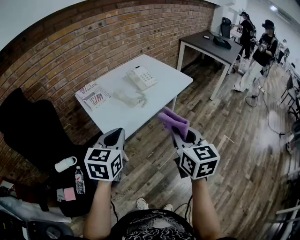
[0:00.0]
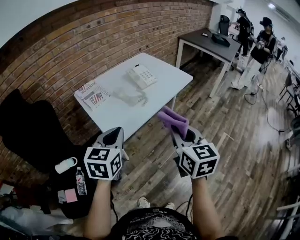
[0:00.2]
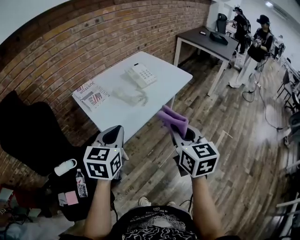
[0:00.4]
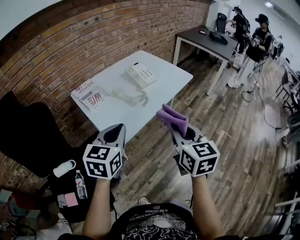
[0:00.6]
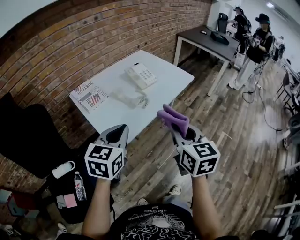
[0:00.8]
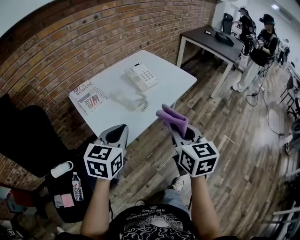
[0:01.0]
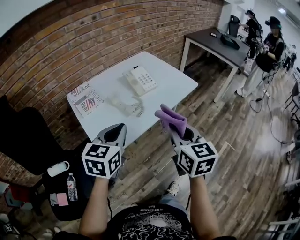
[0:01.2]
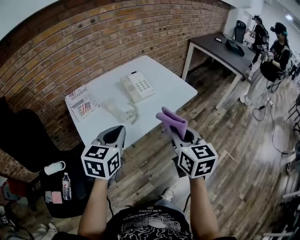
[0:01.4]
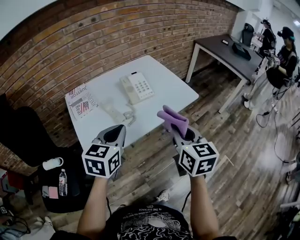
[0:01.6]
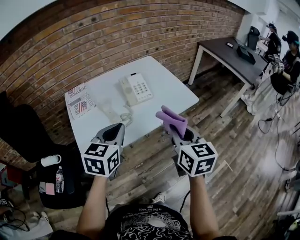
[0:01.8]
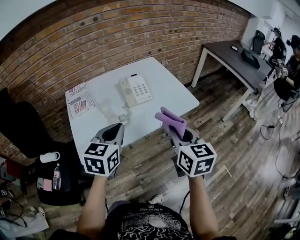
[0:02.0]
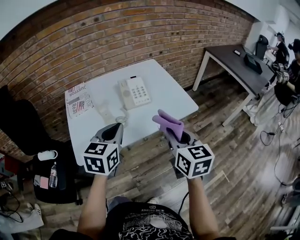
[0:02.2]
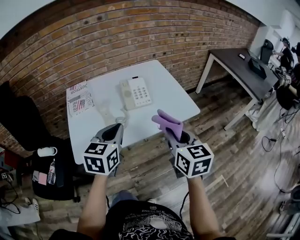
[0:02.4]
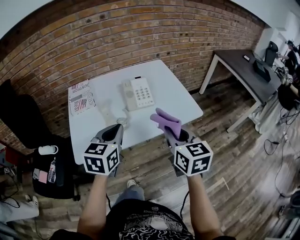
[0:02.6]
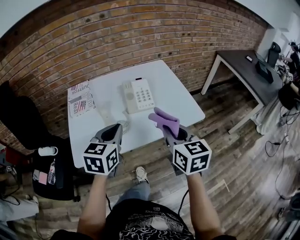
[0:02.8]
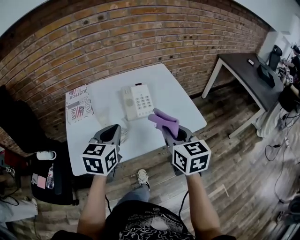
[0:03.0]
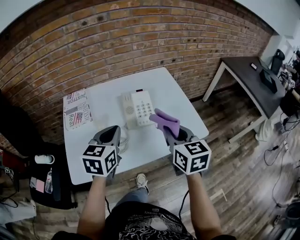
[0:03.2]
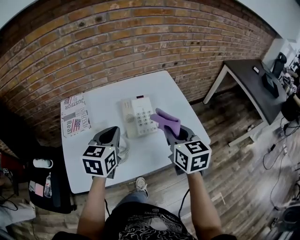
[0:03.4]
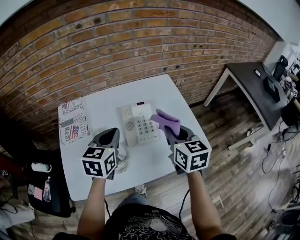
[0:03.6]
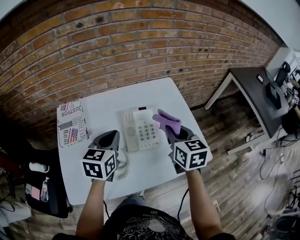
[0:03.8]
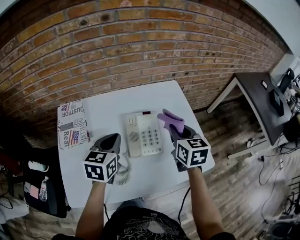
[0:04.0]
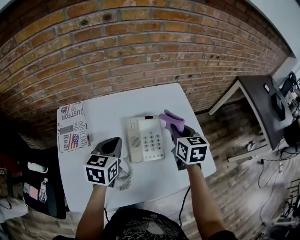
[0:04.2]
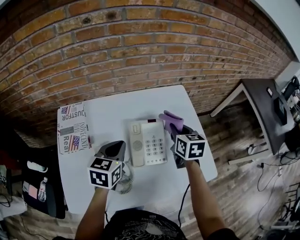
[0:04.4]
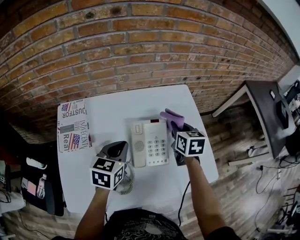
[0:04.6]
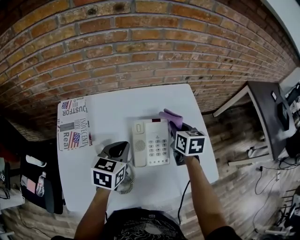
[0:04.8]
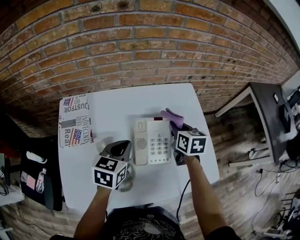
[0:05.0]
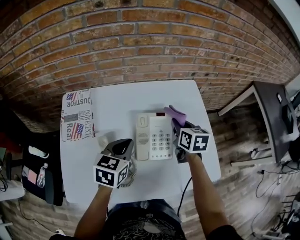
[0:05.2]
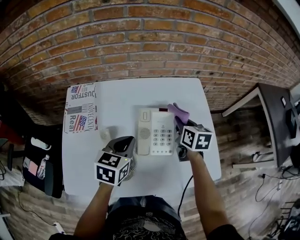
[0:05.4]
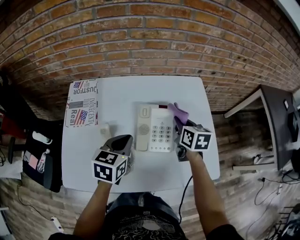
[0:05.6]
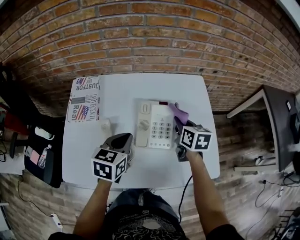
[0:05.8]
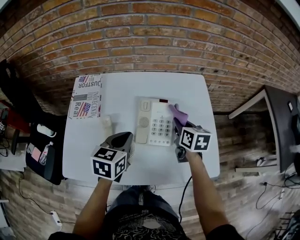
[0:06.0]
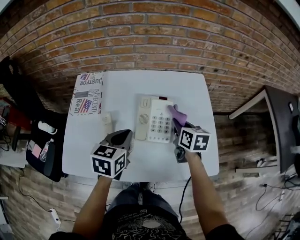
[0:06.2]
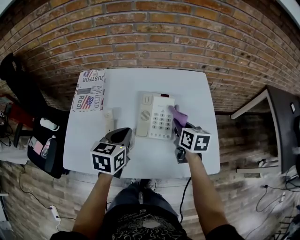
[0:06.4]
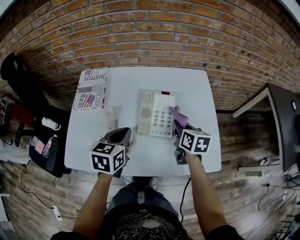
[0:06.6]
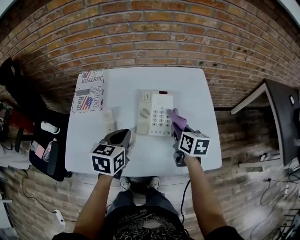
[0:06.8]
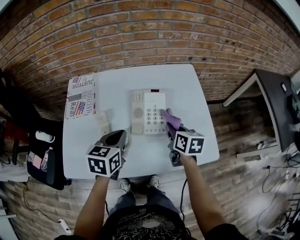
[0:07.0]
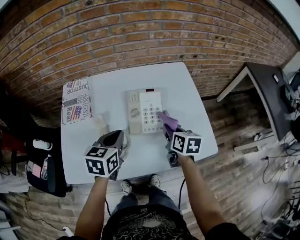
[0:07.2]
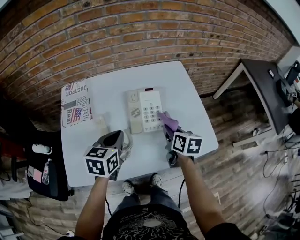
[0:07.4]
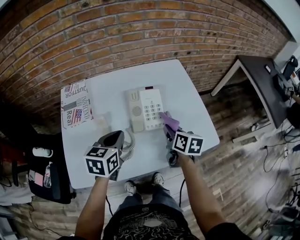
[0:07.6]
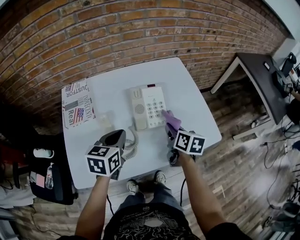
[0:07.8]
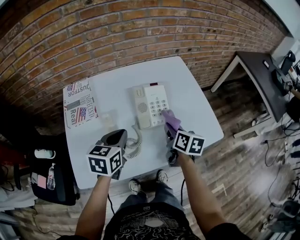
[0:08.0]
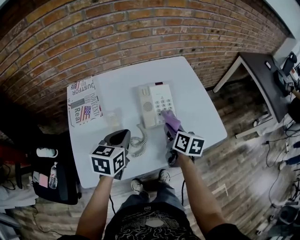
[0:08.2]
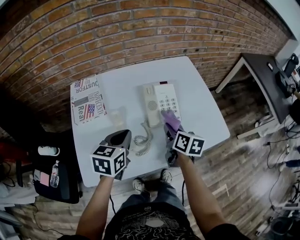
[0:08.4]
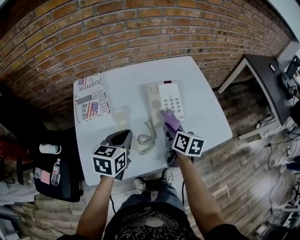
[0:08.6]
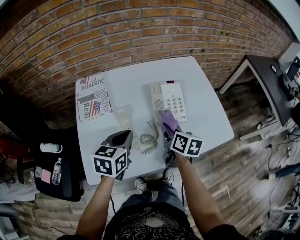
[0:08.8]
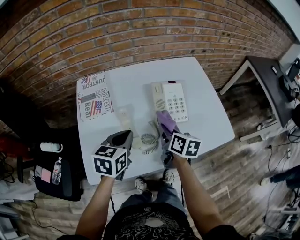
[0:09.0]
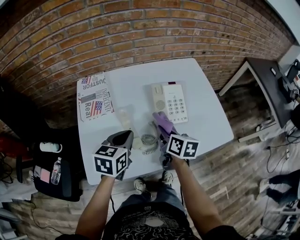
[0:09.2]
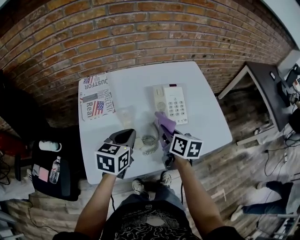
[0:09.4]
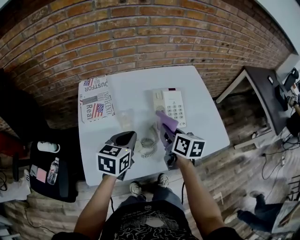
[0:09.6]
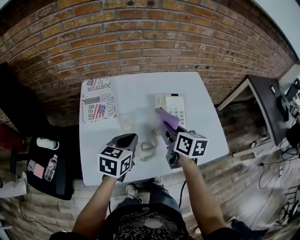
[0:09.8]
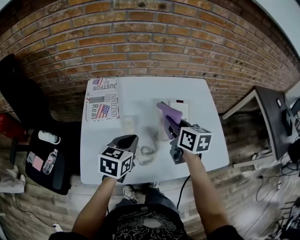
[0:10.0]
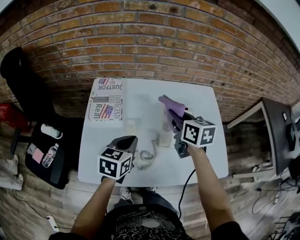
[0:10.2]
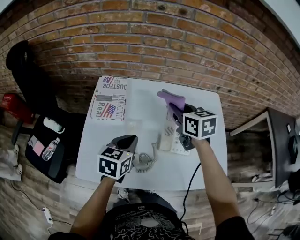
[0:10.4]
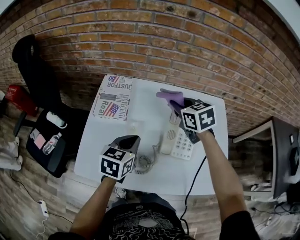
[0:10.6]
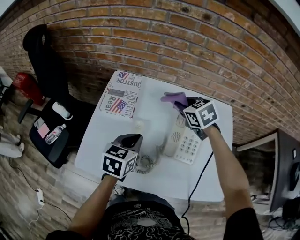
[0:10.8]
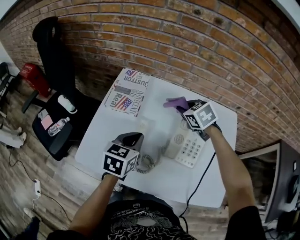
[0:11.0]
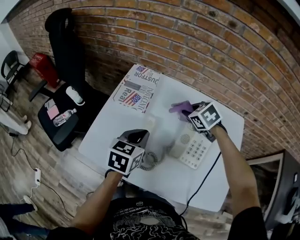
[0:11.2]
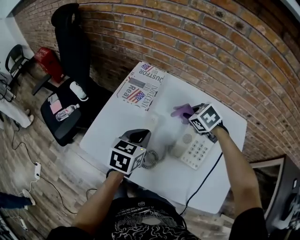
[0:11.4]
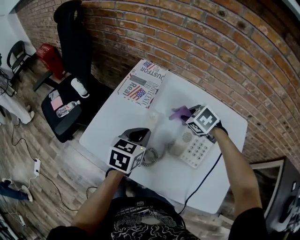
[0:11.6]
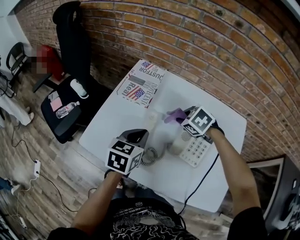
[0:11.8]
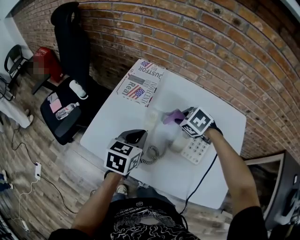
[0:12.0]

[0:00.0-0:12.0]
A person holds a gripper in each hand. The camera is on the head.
0:00.0 to 0:01.6: Both grippers travel together forward and to the right, some 25 cm.
0:01.6 to 0:03.0: The two grippers go approximately 15 cm forward.
0:03.0 to 0:04.4: The grippers both shift forward by approximately 30 cm.
0:04.4 to 0:06.0: The right gripper moves roughly 5 cm; the left gripper goes roughly 5 cm backward.
0:06.0 to 0:07.6: The right gripper is displaced backward by about 10 cm.
0:07.6 to 0:09.0: The left gripper goes about 5 cm to the left; the right gripper shifts some 15 cm to the left.
0:09.0 to 0:10.4: The right gripper goes approximately 20 cm forward and upward, and turns by roughly 40 degrees.
0:10.4 to 0:12.0: The right gripper heads downward, covering some 15 cm, and tips its fingers downward by roughly 40 degrees.

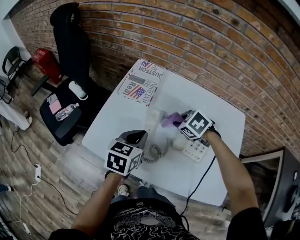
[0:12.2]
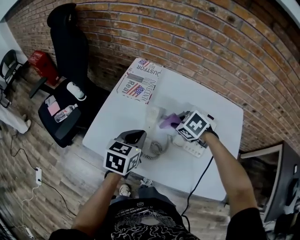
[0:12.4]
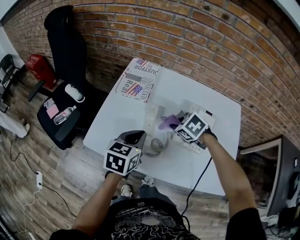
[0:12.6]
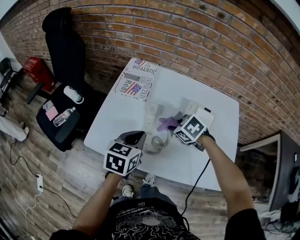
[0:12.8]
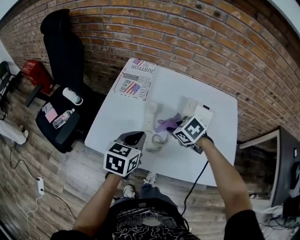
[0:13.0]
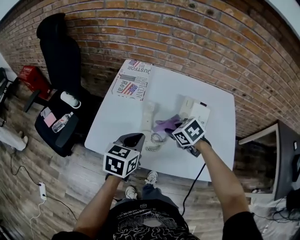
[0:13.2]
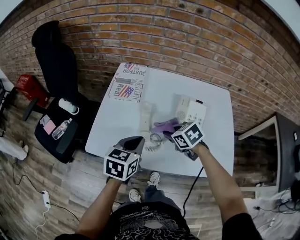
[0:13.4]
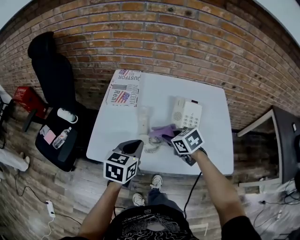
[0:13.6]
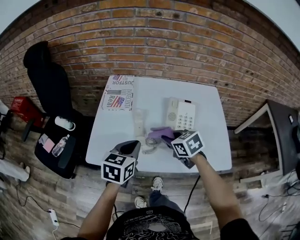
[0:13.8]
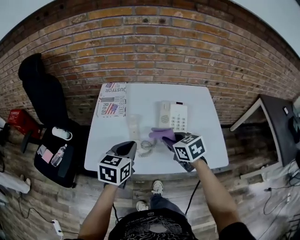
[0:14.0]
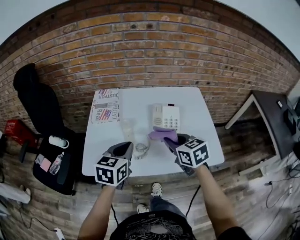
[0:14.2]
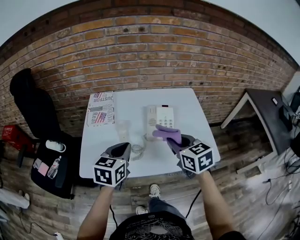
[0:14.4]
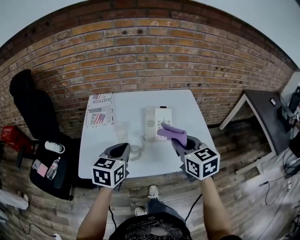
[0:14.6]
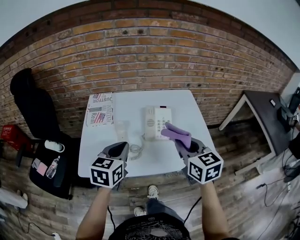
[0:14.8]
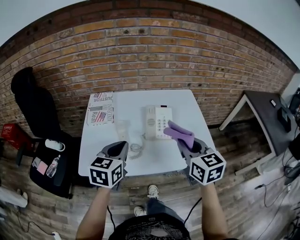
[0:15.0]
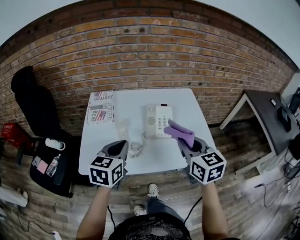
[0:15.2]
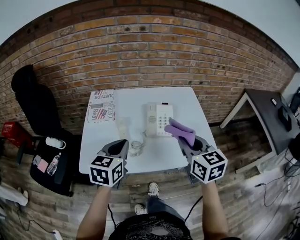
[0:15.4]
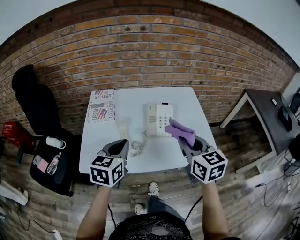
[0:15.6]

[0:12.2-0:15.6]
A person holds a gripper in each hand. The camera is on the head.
0:12.2 to 0:13.8: The right gripper travels backward by roughly 15 cm, and swivels approximately 40 degrees. Meanwhile the left gripper moves backward, roughly 10 cm.
0:13.8 to 0:15.6: The left gripper moves upward, roughly 5 cm; the right gripper shifts some 20 cm upward, to the right and backward, and rotates approximately 40 degrees.

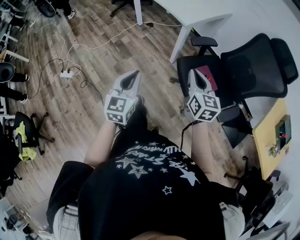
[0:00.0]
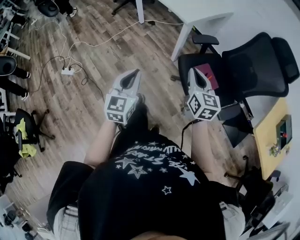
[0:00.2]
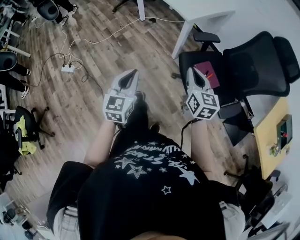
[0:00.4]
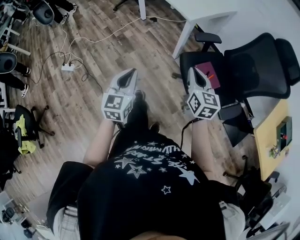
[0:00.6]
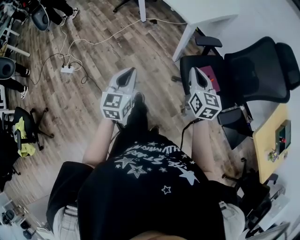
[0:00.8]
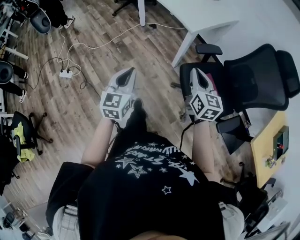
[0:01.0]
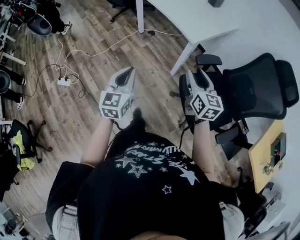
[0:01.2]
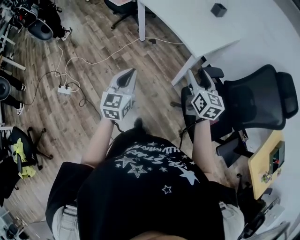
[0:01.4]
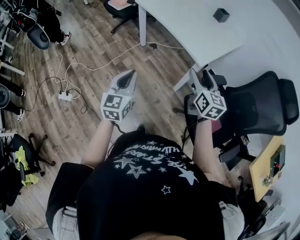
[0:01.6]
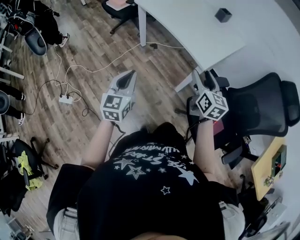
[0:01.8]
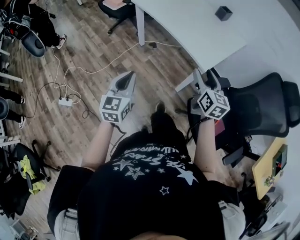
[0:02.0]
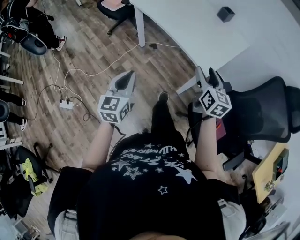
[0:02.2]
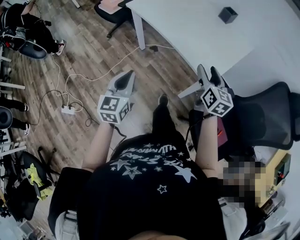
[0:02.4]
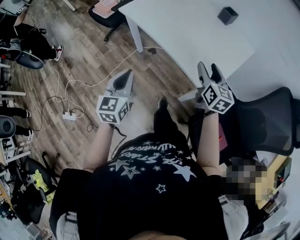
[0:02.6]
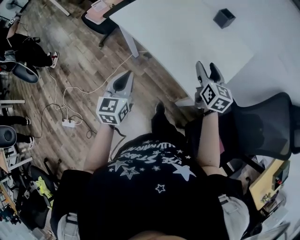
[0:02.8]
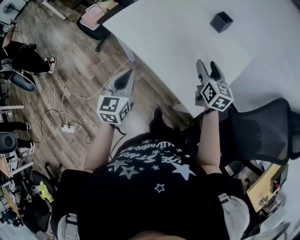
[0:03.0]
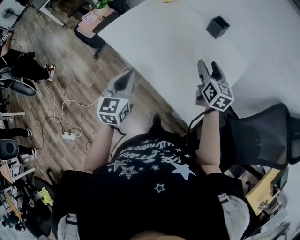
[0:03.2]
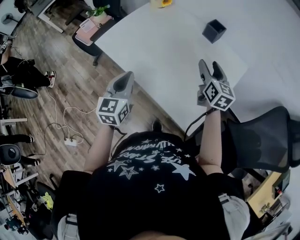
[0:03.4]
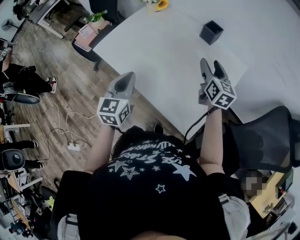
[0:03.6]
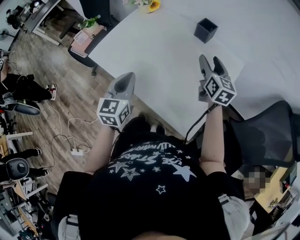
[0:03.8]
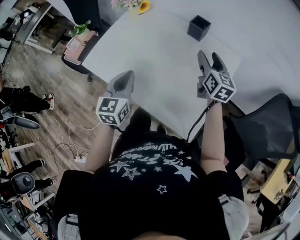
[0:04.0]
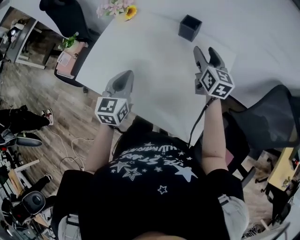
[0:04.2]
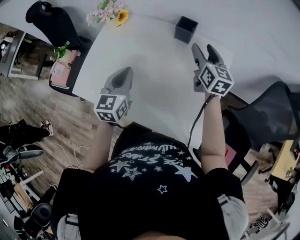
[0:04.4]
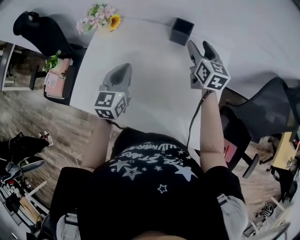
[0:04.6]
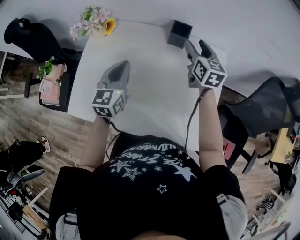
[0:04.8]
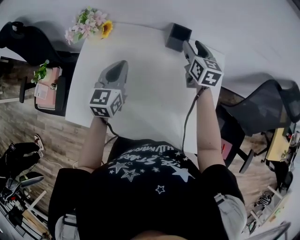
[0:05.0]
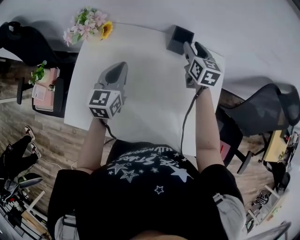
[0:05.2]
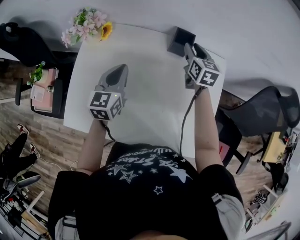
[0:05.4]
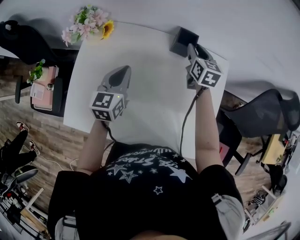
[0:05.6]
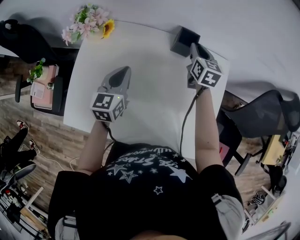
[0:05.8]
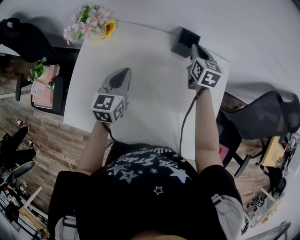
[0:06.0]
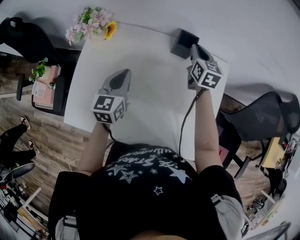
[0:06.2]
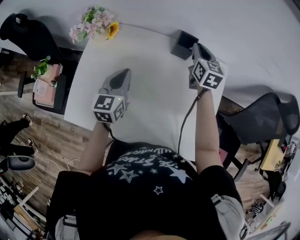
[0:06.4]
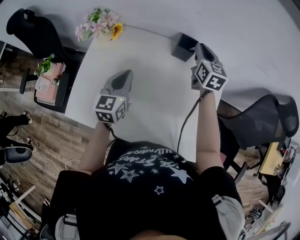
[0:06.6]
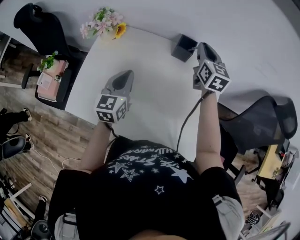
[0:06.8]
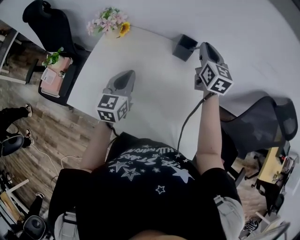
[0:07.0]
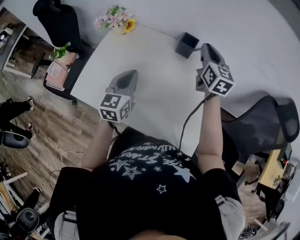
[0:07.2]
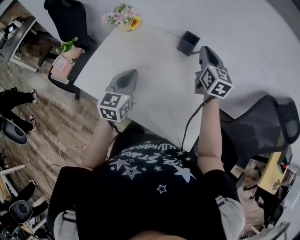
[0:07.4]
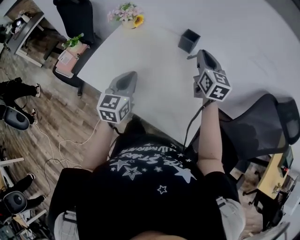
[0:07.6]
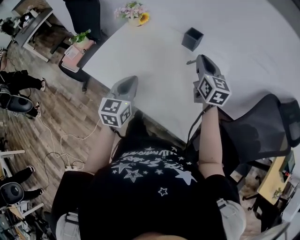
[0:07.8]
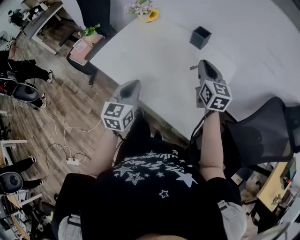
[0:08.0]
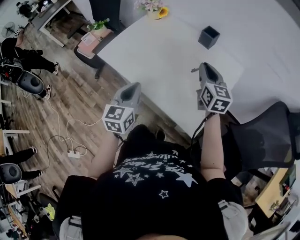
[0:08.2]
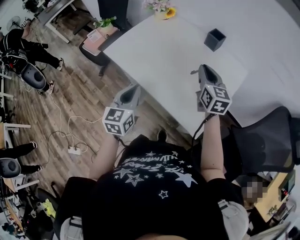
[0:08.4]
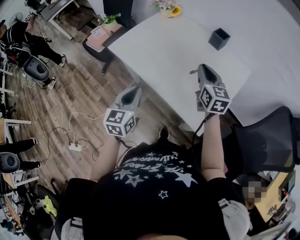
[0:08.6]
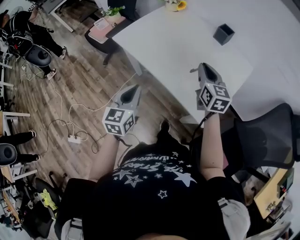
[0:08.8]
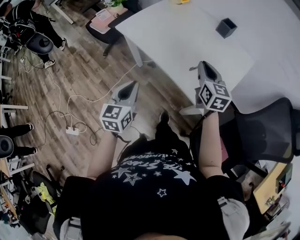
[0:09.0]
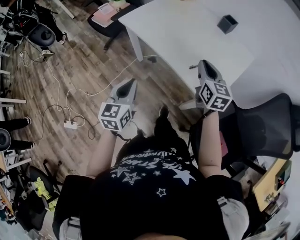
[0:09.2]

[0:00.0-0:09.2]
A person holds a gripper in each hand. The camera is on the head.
0:00.0 to 0:01.6: The left gripper goes roughly 30 cm forward and to the left. The right gripper shifts some 30 cm forward, and opens.
0:01.6 to 0:03.0: The grippers both shift forward by some 40 cm.
0:03.0 to 0:04.6: The right gripper shifts by roughly 30 cm, and rotates some 20 degrees. The left gripper moves roughly 35 cm, and swivels roughly 30 degrees.
0:04.6 to 0:06.2: The left gripper is displaced forward by roughly 5 cm, while the right gripper heads forward and downward, covering some 10 cm, and closes its fingers.
0:06.2 to 0:07.6: The right gripper moves backward and upward, about 25 cm, and turns by some 20 degrees. The left gripper travels backward by some 20 cm.
0:07.6 to 0:09.2: The two grippers go roughly 30 cm backward and to the left. The left gripper rotates some 20 degrees.
